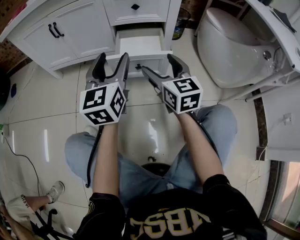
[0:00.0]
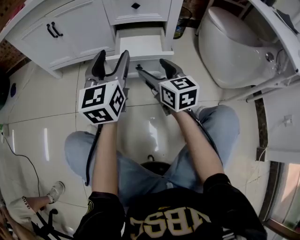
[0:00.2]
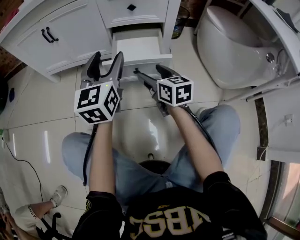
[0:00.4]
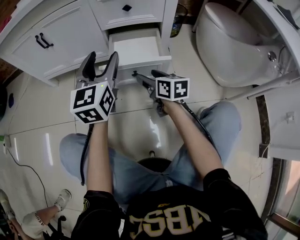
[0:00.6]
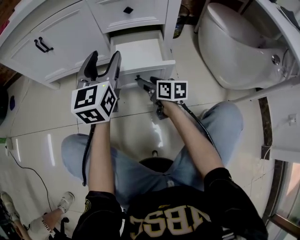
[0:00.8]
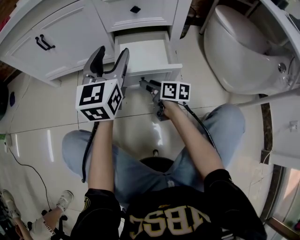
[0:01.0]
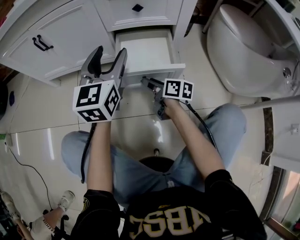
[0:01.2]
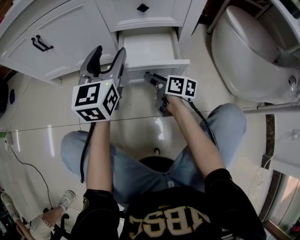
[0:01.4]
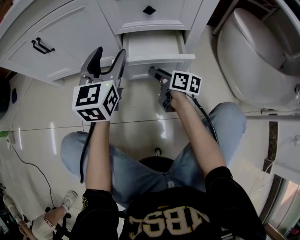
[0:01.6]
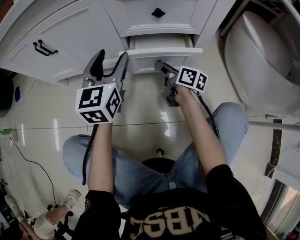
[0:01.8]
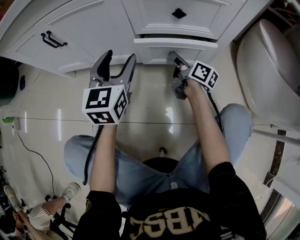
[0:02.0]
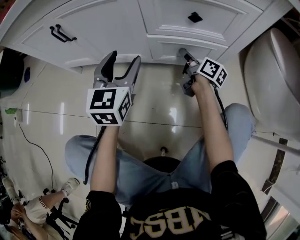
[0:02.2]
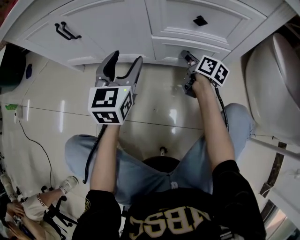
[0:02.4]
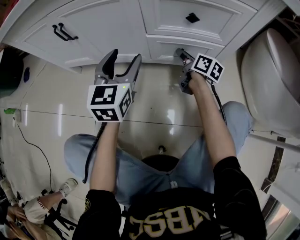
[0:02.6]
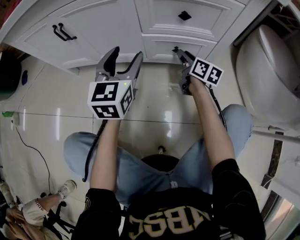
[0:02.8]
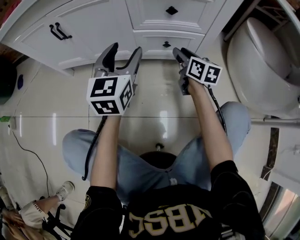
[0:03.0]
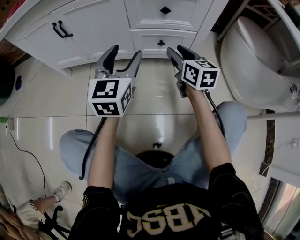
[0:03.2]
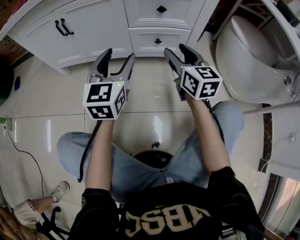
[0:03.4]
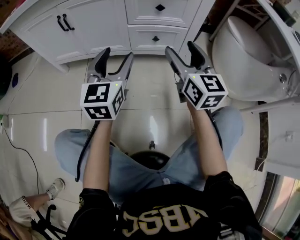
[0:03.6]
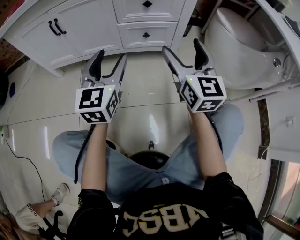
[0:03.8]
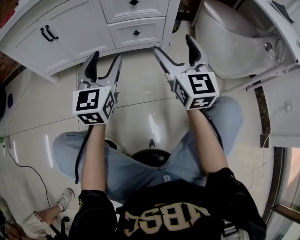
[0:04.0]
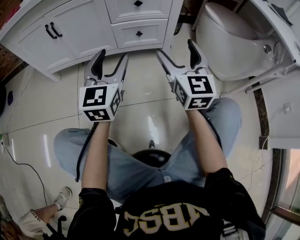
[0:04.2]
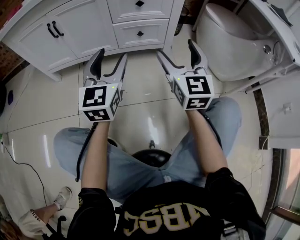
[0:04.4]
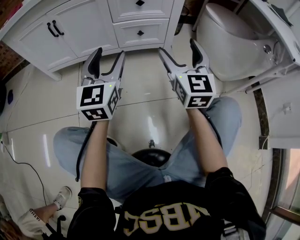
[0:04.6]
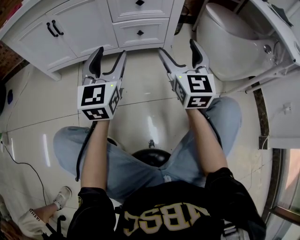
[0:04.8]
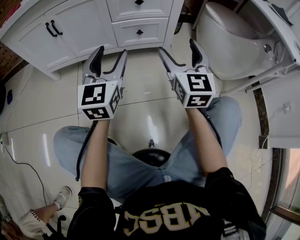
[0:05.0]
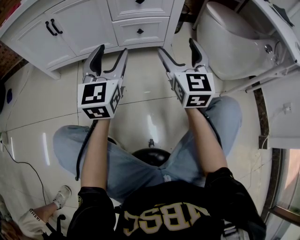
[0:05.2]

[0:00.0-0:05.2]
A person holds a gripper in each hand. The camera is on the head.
0:00.0 to 0:01.8: The right gripper shifts about 30 cm forward and downward, twists approximately 50 degrees clockwise, seen from behind, and closes up, while the left gripper travels forward by some 25 cm.
0:01.8 to 0:03.4: The right gripper travels upward and backward by some 20 cm, and rolls counterclockwise, seen from behind, by approximately 50 degrees; the left gripper shifts roughly 10 cm backward.
0:03.4 to 0:05.2: The left gripper goes roughly 10 cm backward, while the right gripper goes about 10 cm backward, rotates approximately 30 degrees, and opens its fingers.

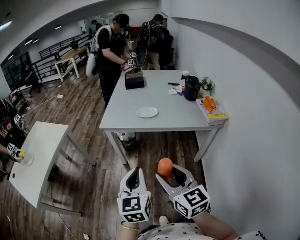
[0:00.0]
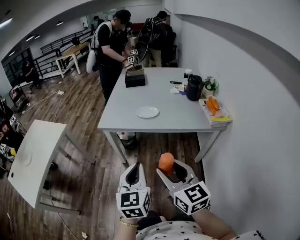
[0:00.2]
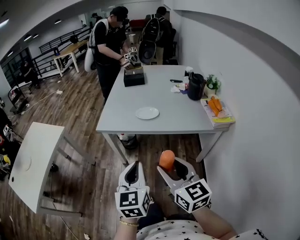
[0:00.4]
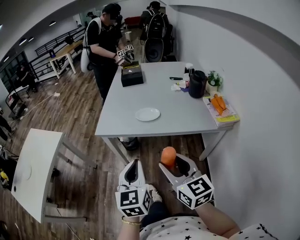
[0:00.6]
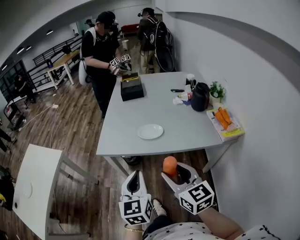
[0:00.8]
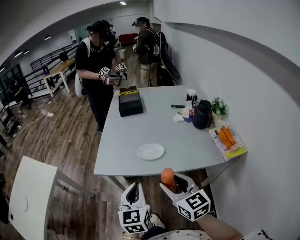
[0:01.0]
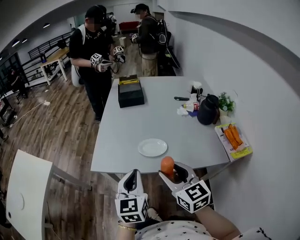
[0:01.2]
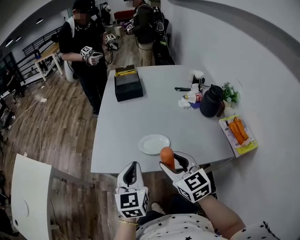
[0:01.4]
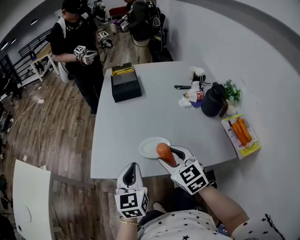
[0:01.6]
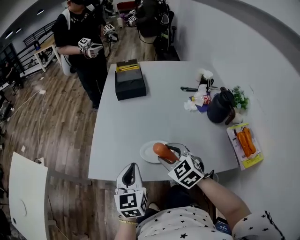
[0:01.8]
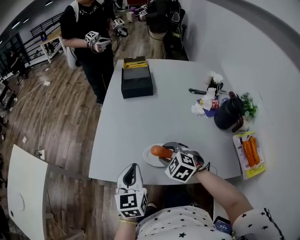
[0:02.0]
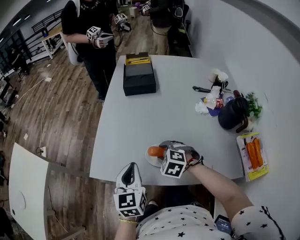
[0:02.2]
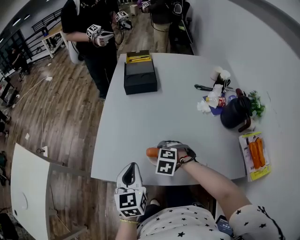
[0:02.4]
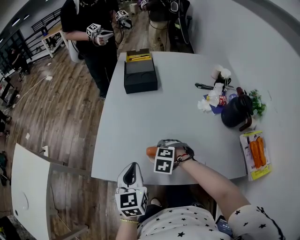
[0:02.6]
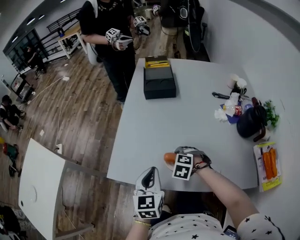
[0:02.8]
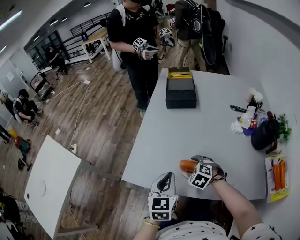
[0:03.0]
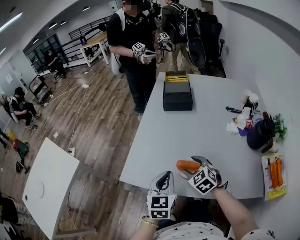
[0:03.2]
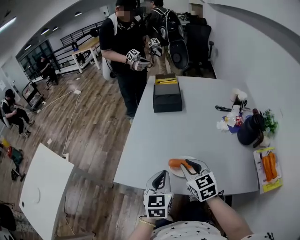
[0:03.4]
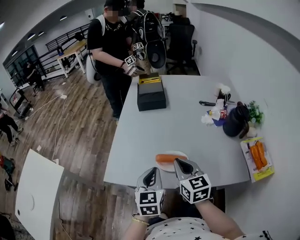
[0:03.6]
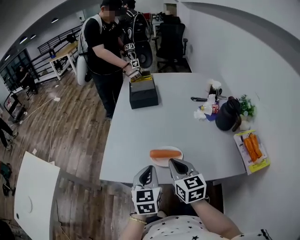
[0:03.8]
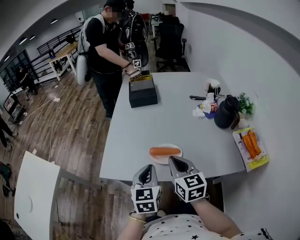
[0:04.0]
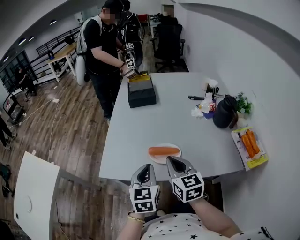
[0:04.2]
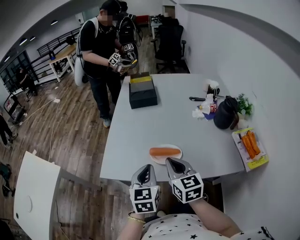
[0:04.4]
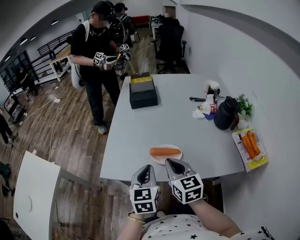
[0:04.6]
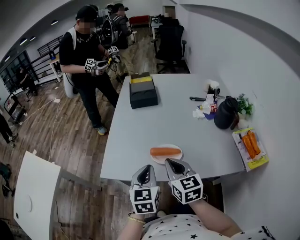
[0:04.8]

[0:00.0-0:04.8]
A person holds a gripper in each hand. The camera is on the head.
0:00.0 to 0:01.6: The two grippers travel together, forward, about 50 cm. The right gripper swivels approximately 20 degrees.
0:01.6 to 0:03.2: The right gripper travels forward and downward by roughly 15 cm, and swivels roughly 30 degrees, while the left gripper travels forward by about 5 cm.
0:03.2 to 0:04.8: The right gripper goes some 15 cm backward and upward, rotates some 40 degrees, and closes; the left gripper shifts some 5 cm backward.

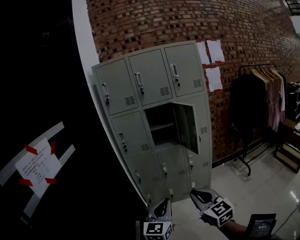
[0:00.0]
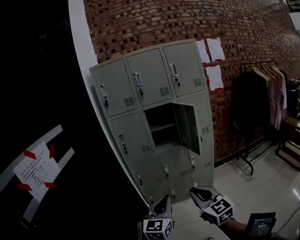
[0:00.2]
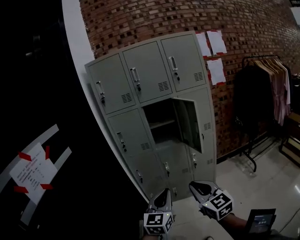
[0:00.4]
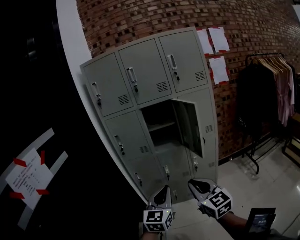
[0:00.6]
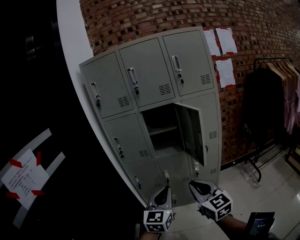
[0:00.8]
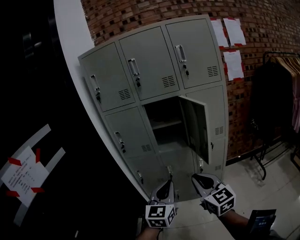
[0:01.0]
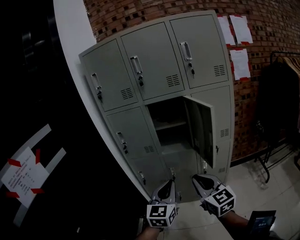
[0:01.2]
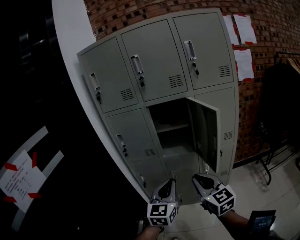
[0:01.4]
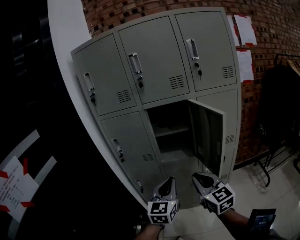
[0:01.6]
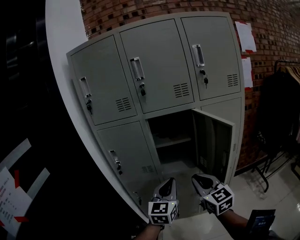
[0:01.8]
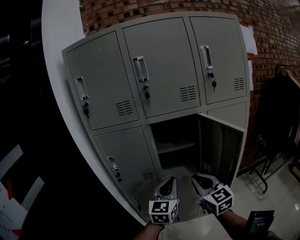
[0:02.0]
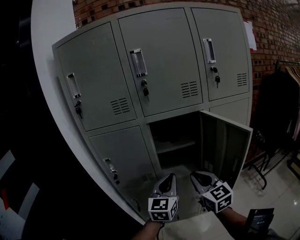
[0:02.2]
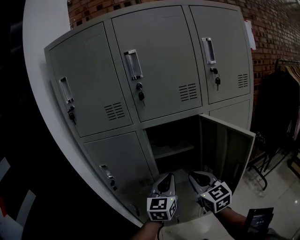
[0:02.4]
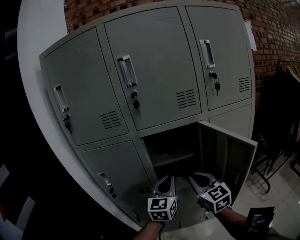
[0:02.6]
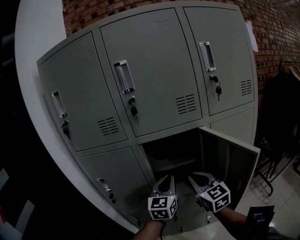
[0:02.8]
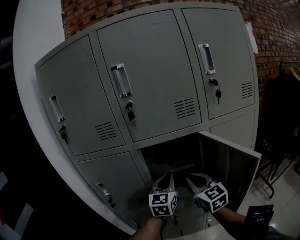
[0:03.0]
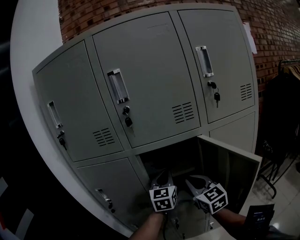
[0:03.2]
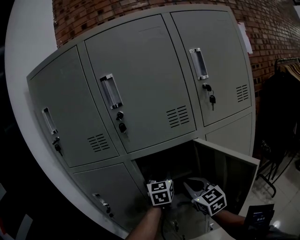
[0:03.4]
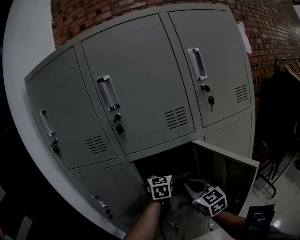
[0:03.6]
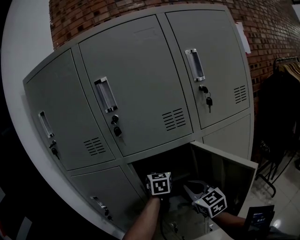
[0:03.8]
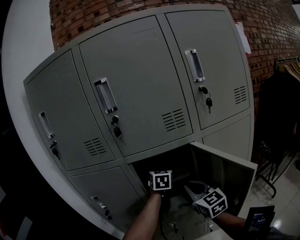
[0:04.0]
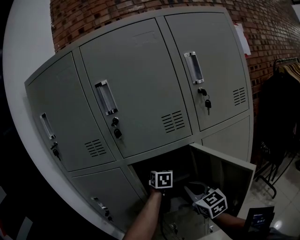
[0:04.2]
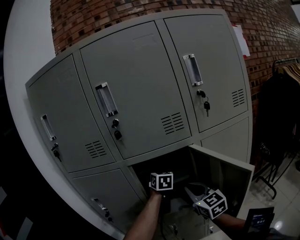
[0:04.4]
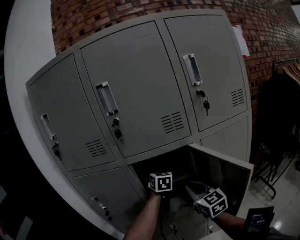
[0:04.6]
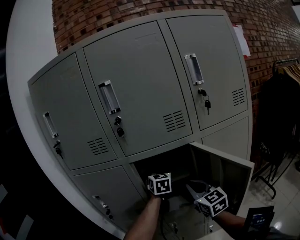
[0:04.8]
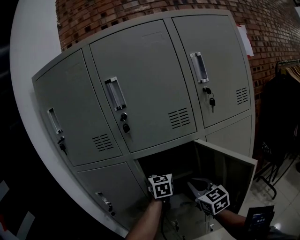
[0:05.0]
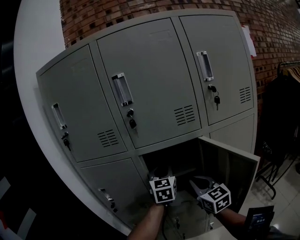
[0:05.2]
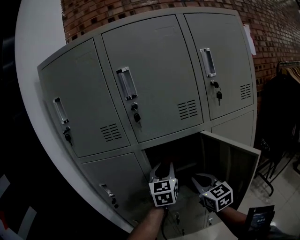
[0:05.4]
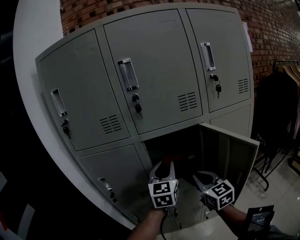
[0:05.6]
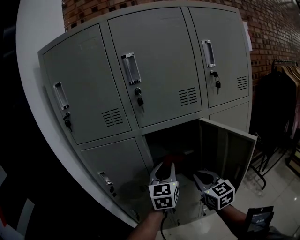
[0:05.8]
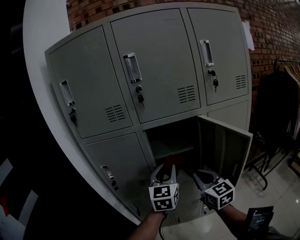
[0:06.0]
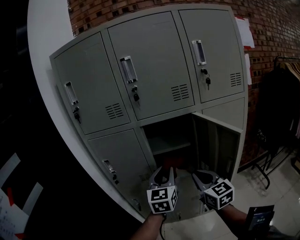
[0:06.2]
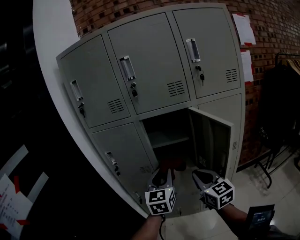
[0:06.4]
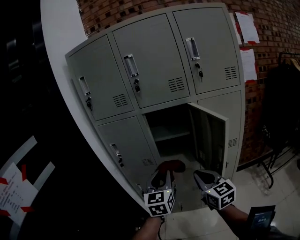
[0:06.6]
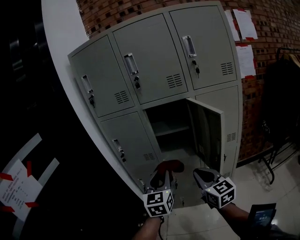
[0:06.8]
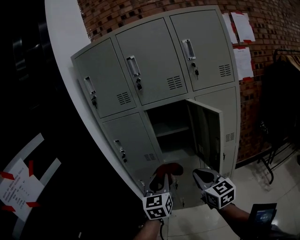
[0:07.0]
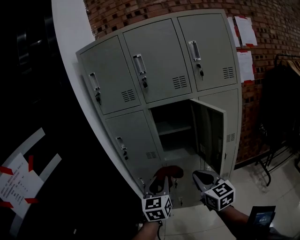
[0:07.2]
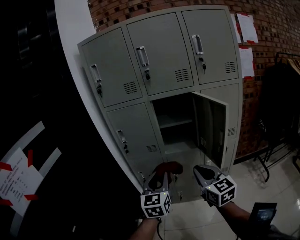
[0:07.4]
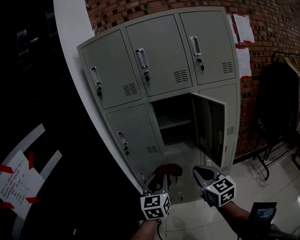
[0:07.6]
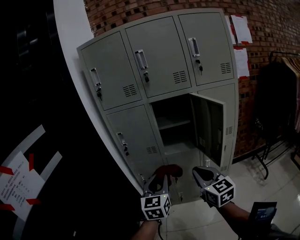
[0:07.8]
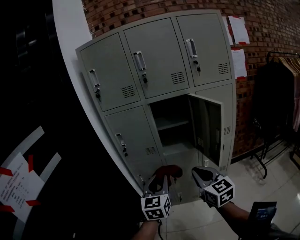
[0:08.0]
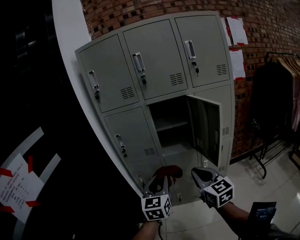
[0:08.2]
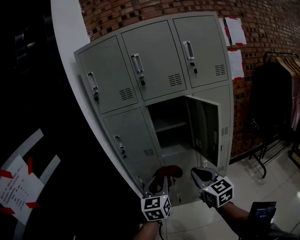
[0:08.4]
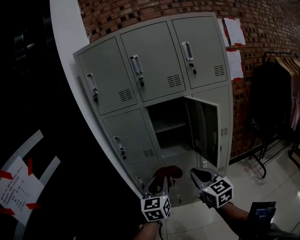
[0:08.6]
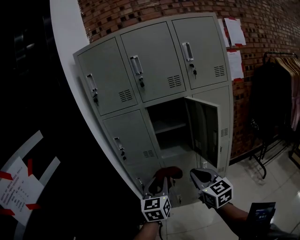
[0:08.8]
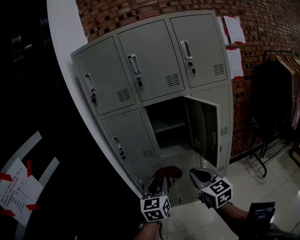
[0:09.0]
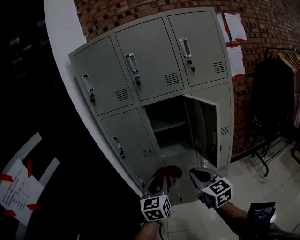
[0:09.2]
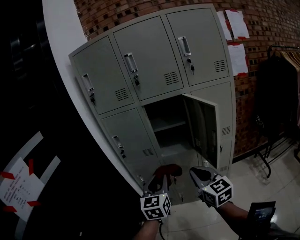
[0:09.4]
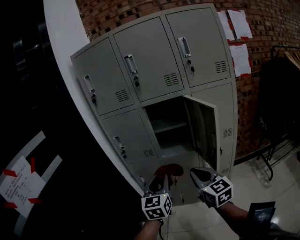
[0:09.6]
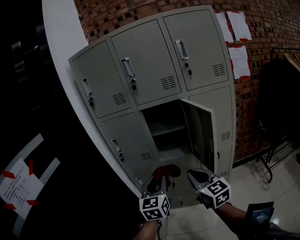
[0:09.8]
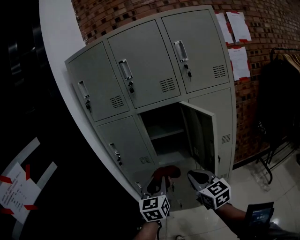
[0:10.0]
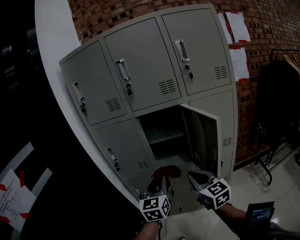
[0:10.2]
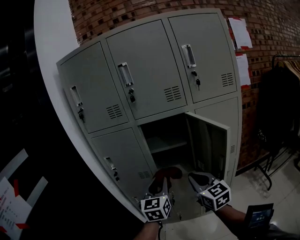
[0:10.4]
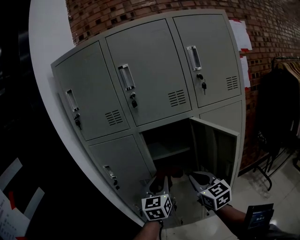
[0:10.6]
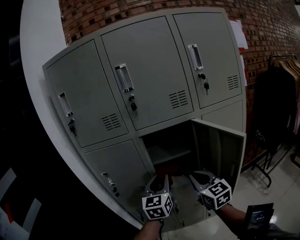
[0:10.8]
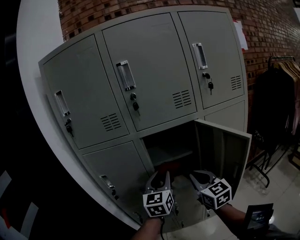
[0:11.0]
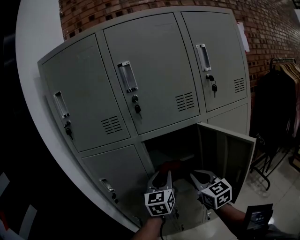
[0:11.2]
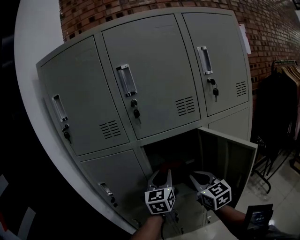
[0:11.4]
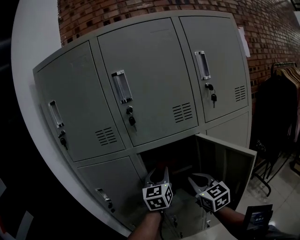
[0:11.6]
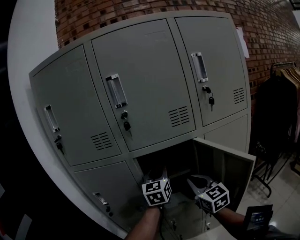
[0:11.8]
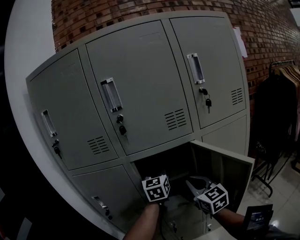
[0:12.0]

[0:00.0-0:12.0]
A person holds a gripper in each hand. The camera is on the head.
0:00.0 to 0:01.6: The two grippers travel together, forward, roughly 40 cm.
0:01.6 to 0:03.0: The grippers both shift forward by approximately 30 cm.
0:03.0 to 0:04.4: The left gripper heads forward, covering approximately 15 cm, rotates some 30 degrees, and opens up.
0:04.4 to 0:06.0: The right gripper shifts about 10 cm backward; the left gripper heads backward, covering roughly 25 cm, and turns by about 30 degrees.
0:06.0 to 0:07.6: The two grippers go approximately 25 cm backward.
0:07.6 to 0:09.0: The grippers make only small movements.
0:09.0 to 0:10.4: The two grippers go roughly 15 cm forward.
0:10.4 to 0:12.0: The left gripper travels forward by some 30 cm; the right gripper is displaced forward by roughly 20 cm.

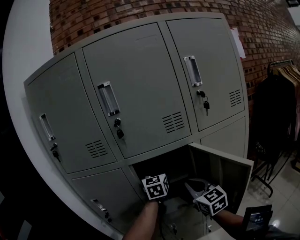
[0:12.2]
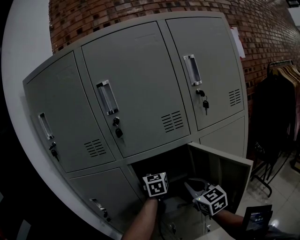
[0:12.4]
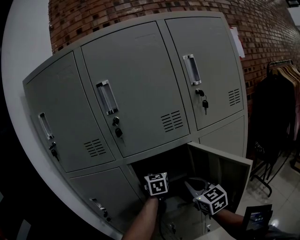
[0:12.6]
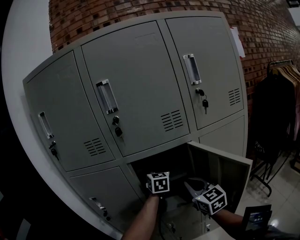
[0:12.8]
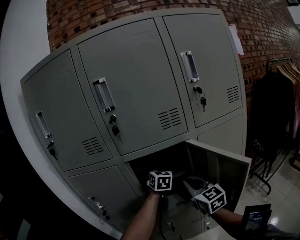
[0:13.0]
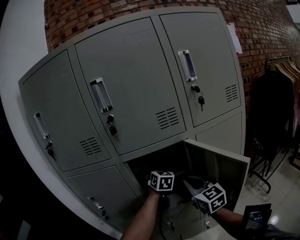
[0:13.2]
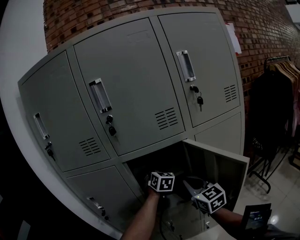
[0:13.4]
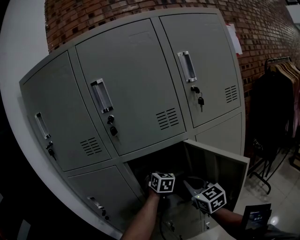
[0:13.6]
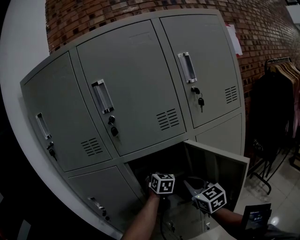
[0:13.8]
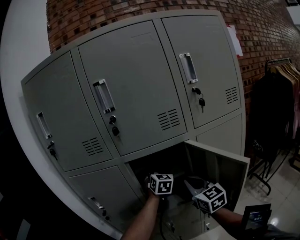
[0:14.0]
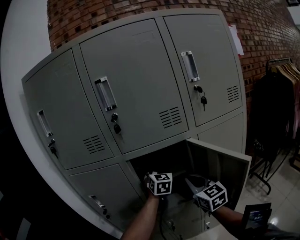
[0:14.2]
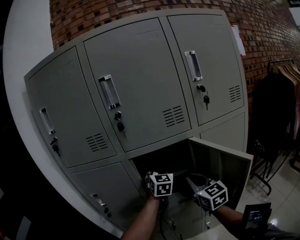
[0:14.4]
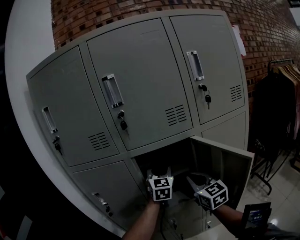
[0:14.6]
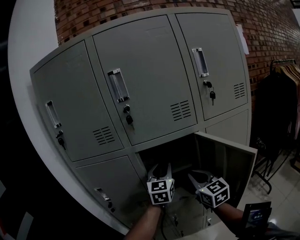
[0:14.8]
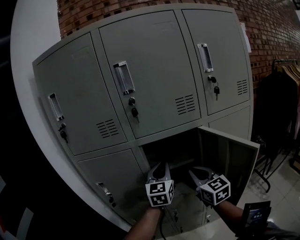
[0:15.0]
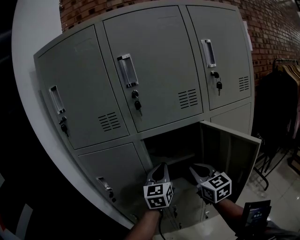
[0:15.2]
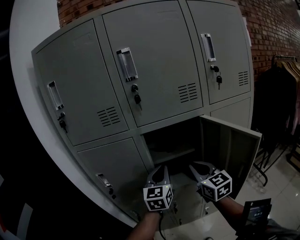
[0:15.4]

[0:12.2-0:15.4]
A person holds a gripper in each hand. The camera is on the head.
0:12.2 to 0:13.8: The left gripper shifts roughly 5 cm downward, and changes its angle by some 30 degrees.
0:13.8 to 0:15.4: The left gripper travels backward and to the left by roughly 15 cm, rotates about 30 degrees, and closes its fingers. Meanwhile the right gripper shifts by some 5 cm.
